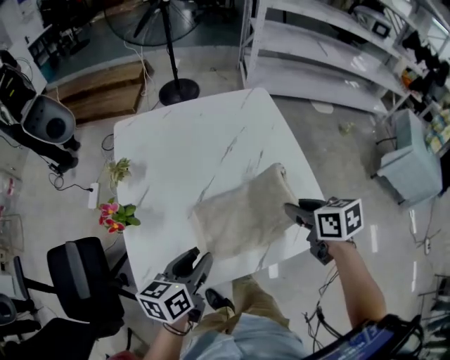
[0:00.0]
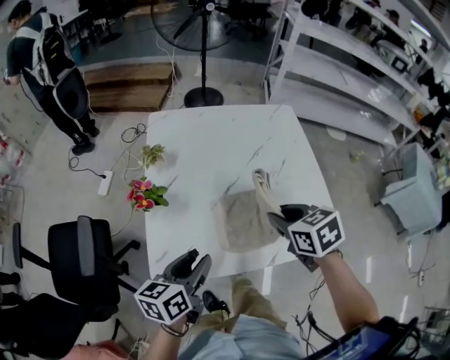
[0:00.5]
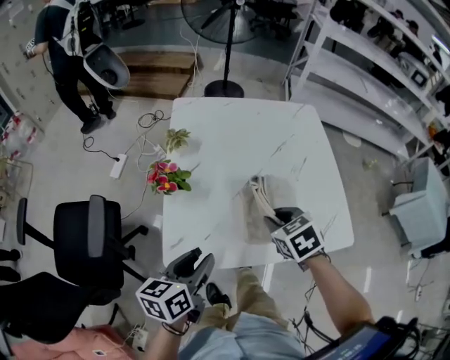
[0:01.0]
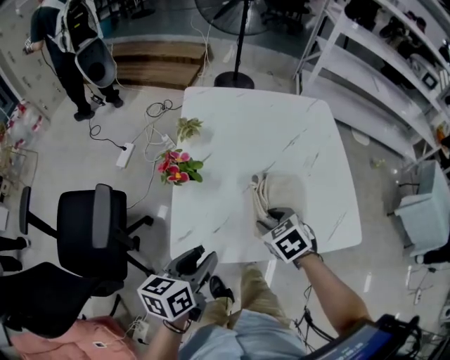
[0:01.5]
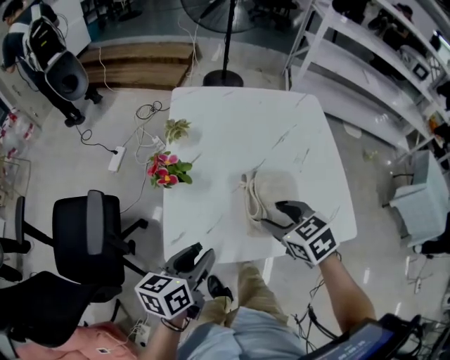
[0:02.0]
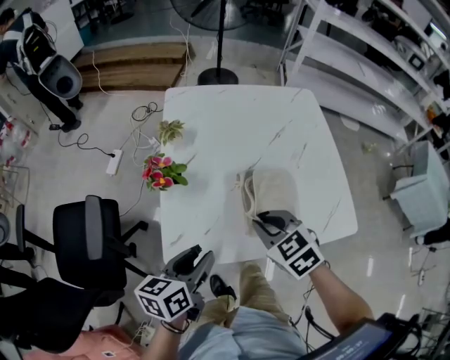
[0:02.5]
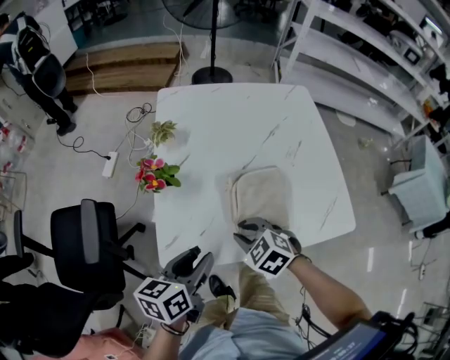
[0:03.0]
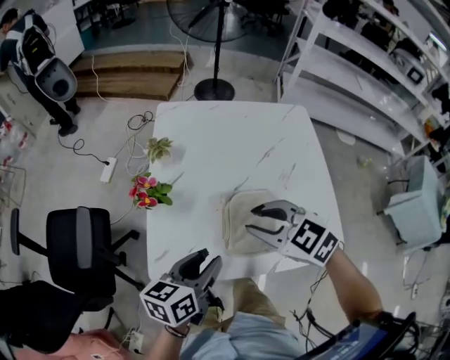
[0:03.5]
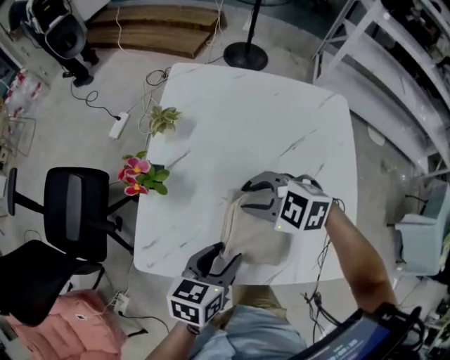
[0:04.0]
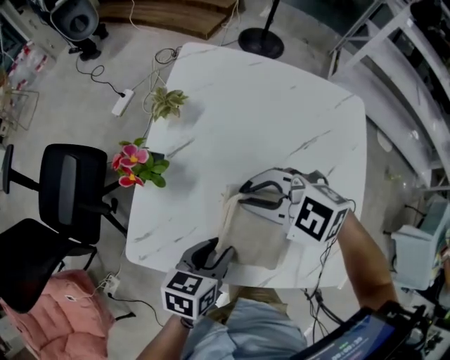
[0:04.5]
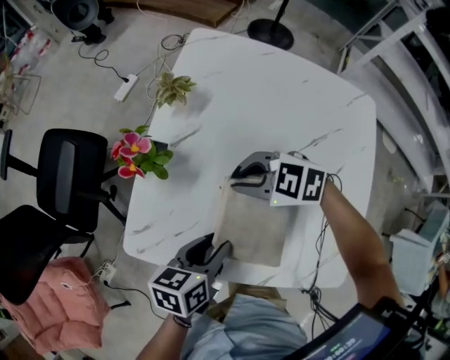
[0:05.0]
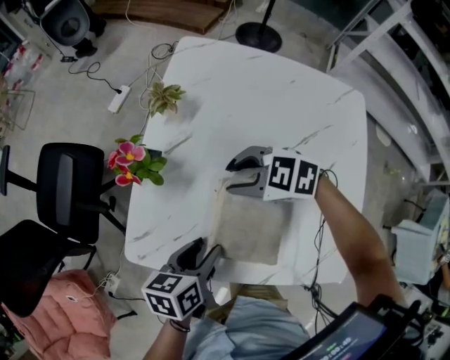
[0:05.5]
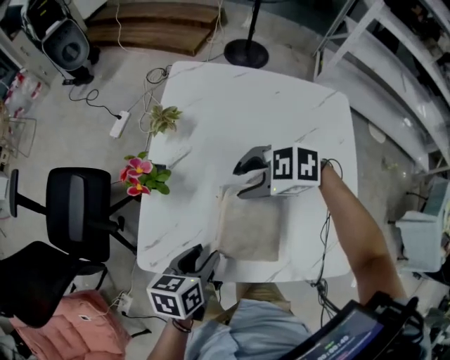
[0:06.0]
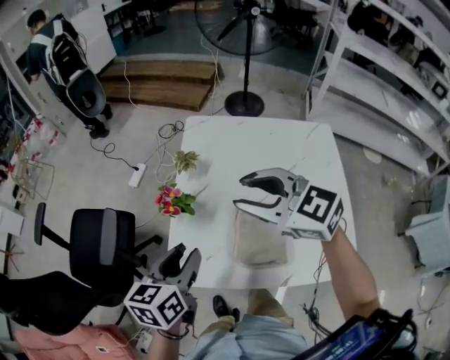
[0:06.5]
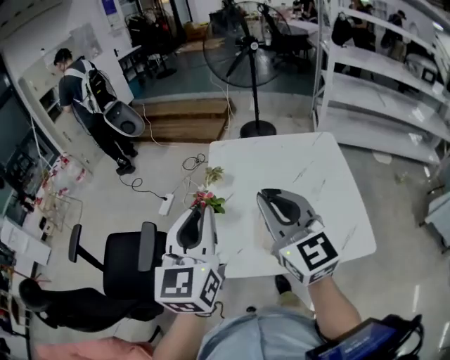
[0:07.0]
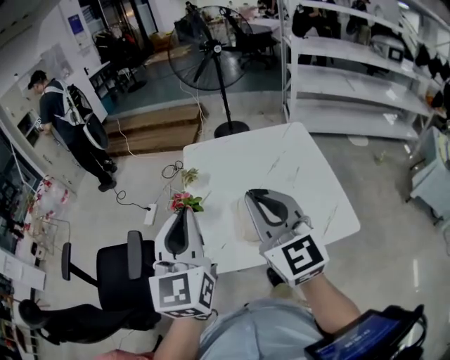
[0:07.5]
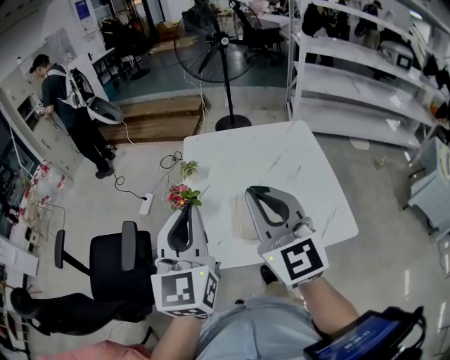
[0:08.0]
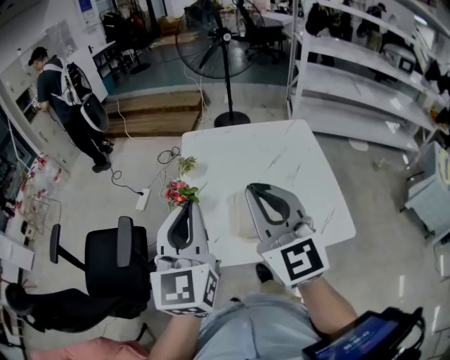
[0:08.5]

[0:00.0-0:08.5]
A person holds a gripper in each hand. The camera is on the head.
0:00.0 to 0:02.0: The left gripper travels to the left and backward by some 15 cm. Meanwhile the right gripper goes about 20 cm to the left, rotates about 40 degrees, and opens.
0:02.0 to 0:04.0: The right gripper swings up and down, roughly 15 cm each way, with 2 reversals, changes its angle by roughly 50 degrees, and closes and opens again. The left gripper changes place by roughly 15 cm.
0:04.0 to 0:06.5: The right gripper heads upward, covering some 20 cm, and changes its angle by some 30 degrees. The left gripper ends up about 20 cm from where it was.
0:06.5 to 0:08.5: The left gripper moves upward, approximately 20 cm, swivels roughly 40 degrees, and closes its fingers; the right gripper shifts roughly 20 cm backward and upward, swivels about 50 degrees, and closes up.

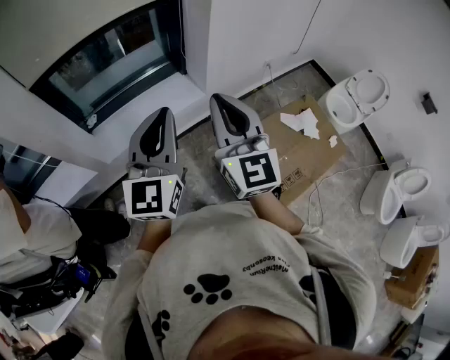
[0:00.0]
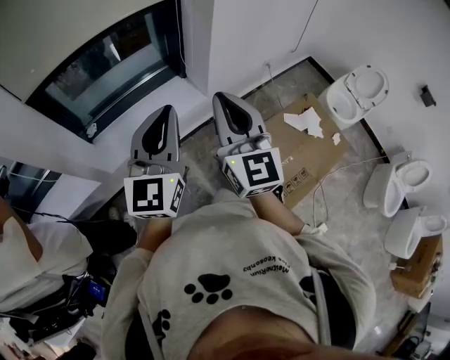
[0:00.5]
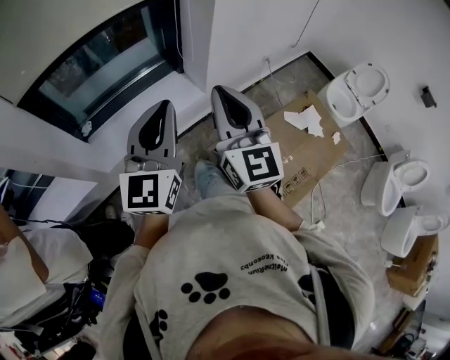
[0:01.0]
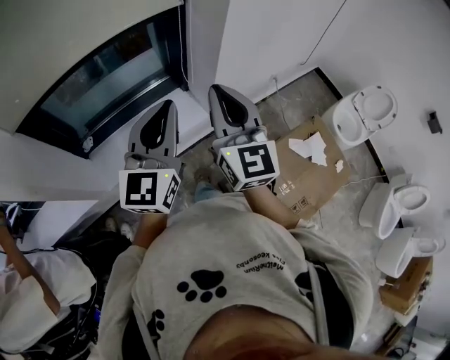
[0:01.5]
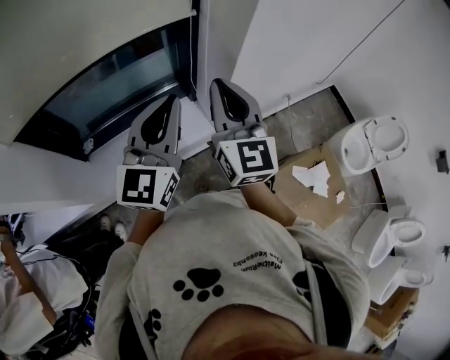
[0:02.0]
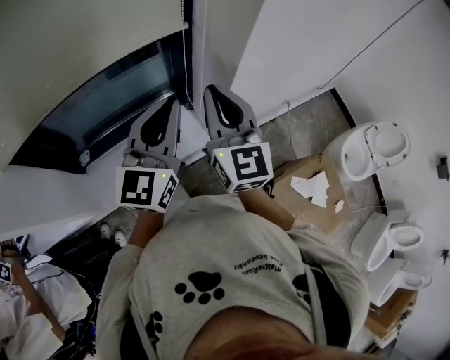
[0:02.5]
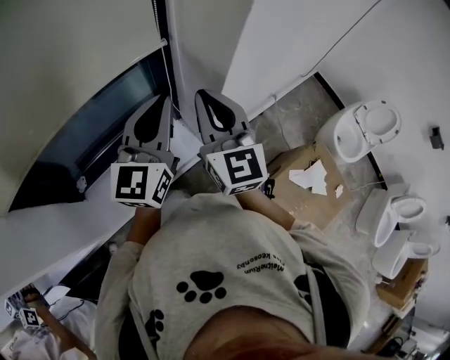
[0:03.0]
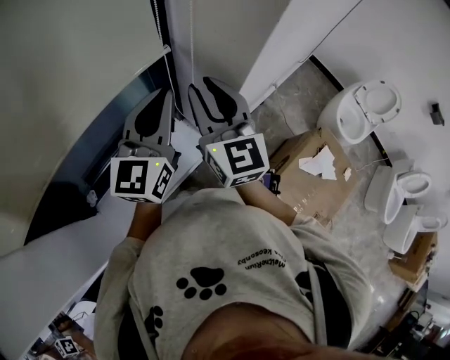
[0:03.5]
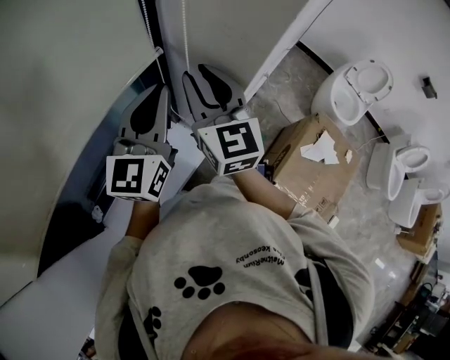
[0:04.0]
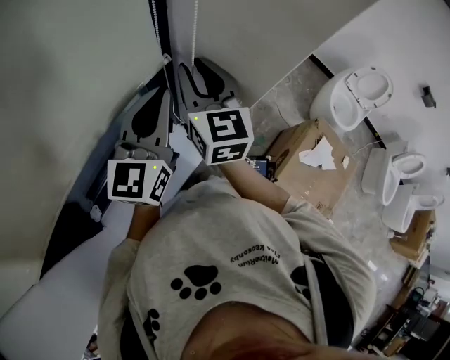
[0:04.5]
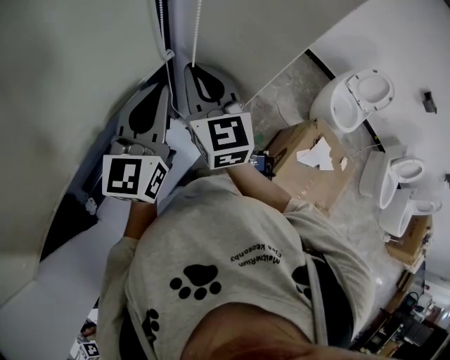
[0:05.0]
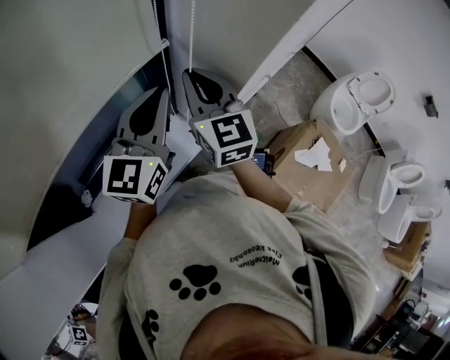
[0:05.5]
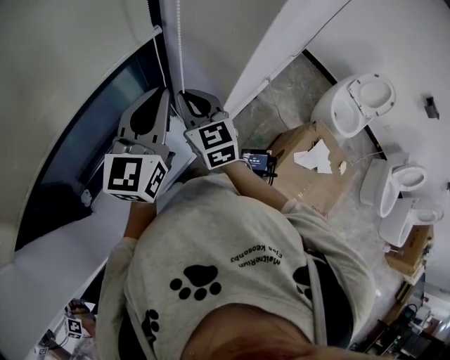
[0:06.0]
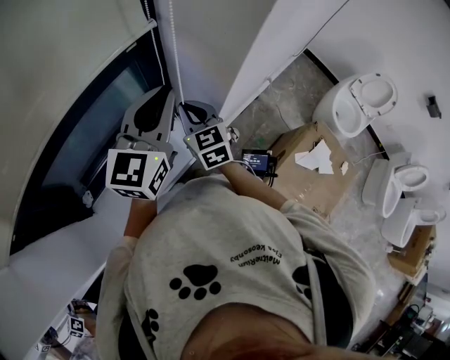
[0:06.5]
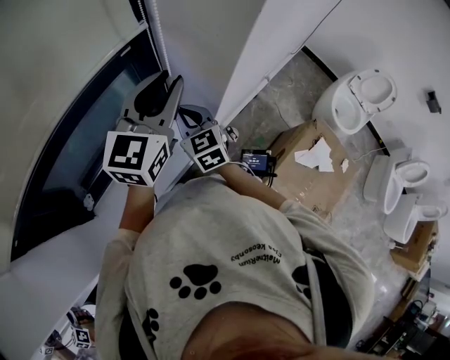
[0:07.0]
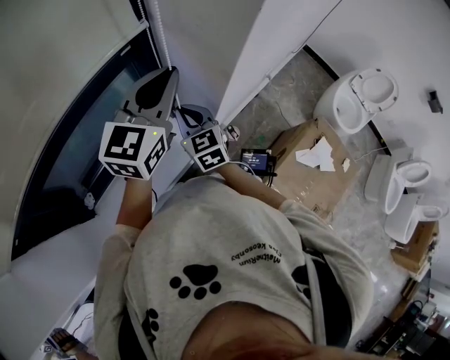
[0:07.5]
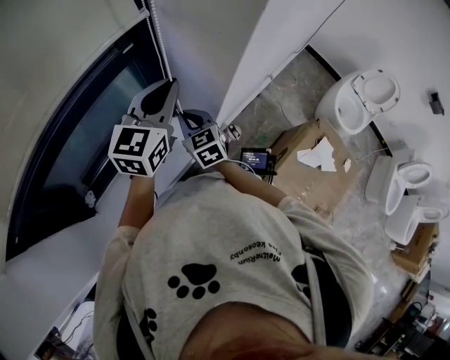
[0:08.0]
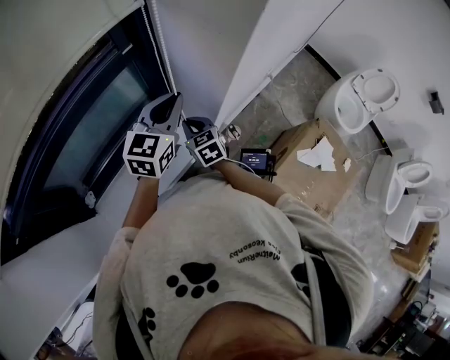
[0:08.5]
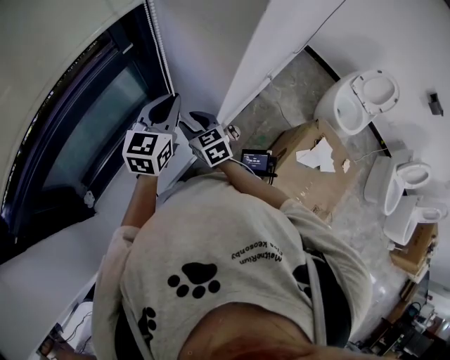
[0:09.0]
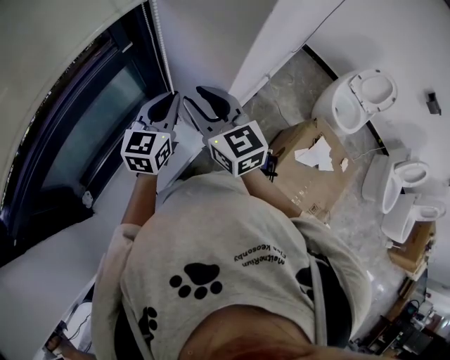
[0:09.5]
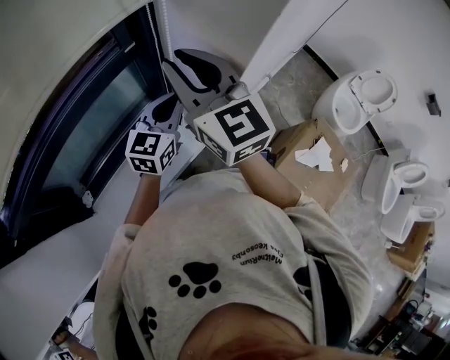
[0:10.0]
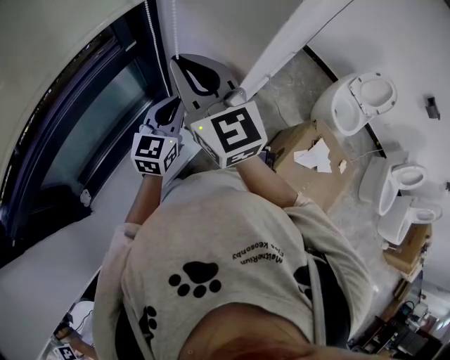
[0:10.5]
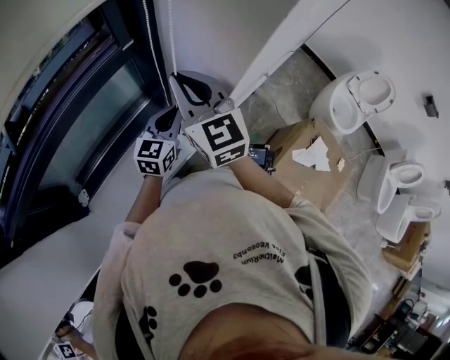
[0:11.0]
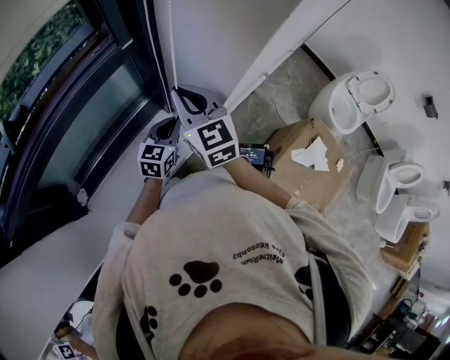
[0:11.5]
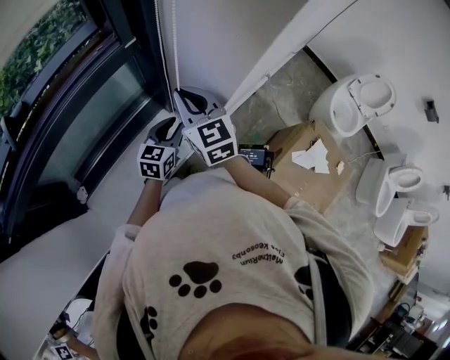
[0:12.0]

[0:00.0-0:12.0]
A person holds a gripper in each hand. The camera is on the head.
0:00.0 to 0:02.0: Both grippers move forward, approximately 30 cm.
0:02.0 to 0:04.0: Both grippers travel together forward, some 20 cm. The right gripper opens its fingers. The left gripper swivels some 20 degrees.
0:04.0 to 0:06.0: The right gripper travels downward by some 10 cm, and closes.
0:06.0 to 0:08.0: The right gripper travels downward by some 15 cm; the left gripper ends up approximately 5 cm from where it was, and opens and closes again.
0:08.0 to 0:10.0: The left gripper heads downward, covering approximately 10 cm. Meanwhile the right gripper travels upward by roughly 30 cm, and rotates about 30 degrees.
0:10.0 to 0:12.0: The two grippers go approximately 15 cm downward. The left gripper opens.

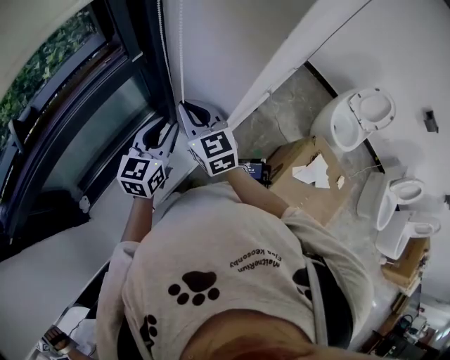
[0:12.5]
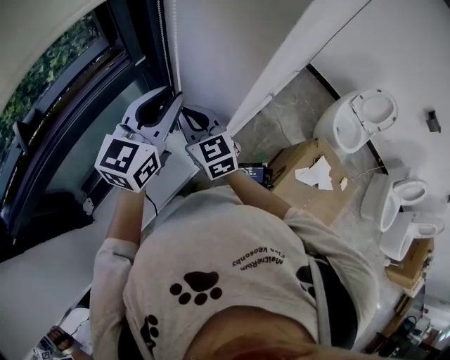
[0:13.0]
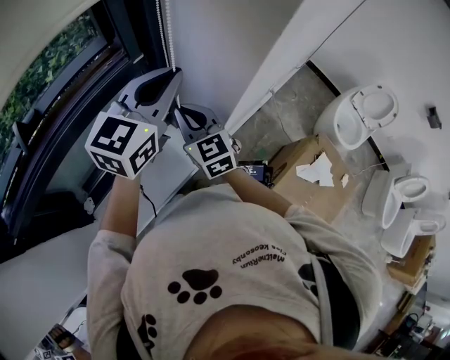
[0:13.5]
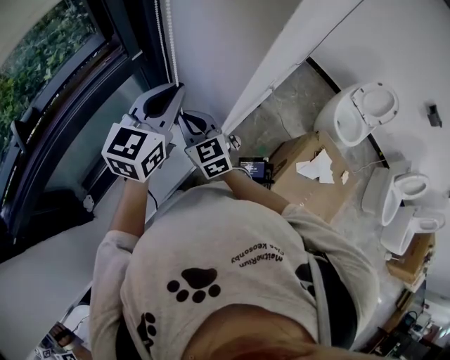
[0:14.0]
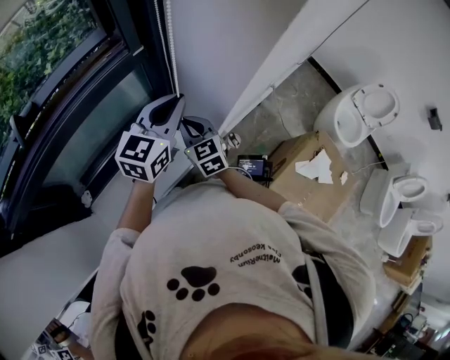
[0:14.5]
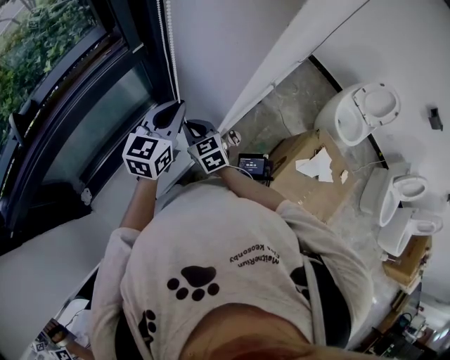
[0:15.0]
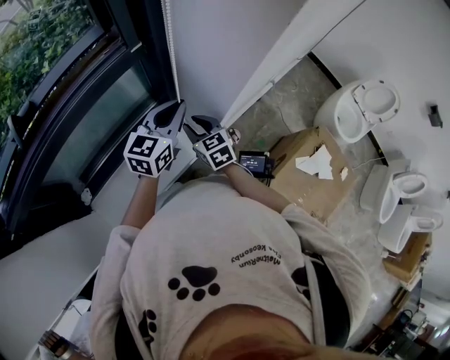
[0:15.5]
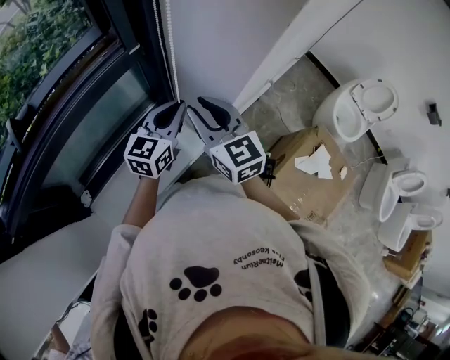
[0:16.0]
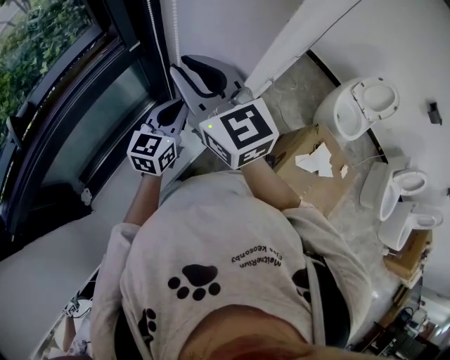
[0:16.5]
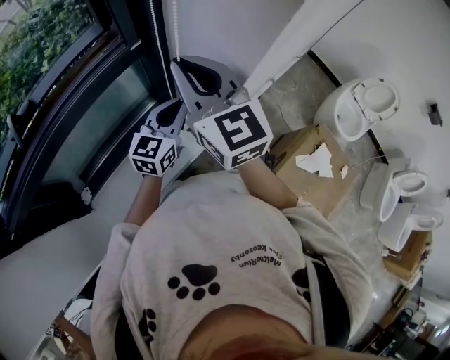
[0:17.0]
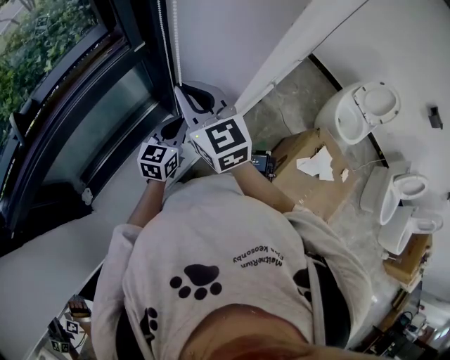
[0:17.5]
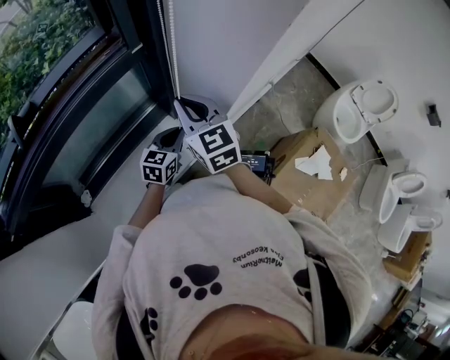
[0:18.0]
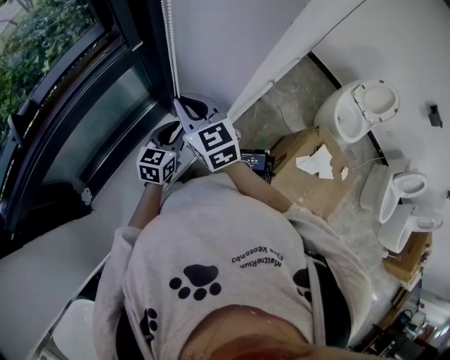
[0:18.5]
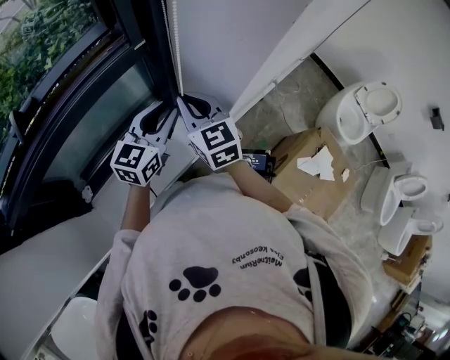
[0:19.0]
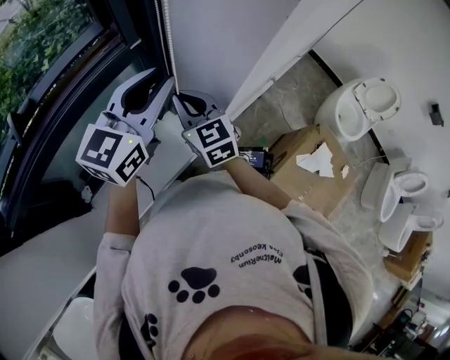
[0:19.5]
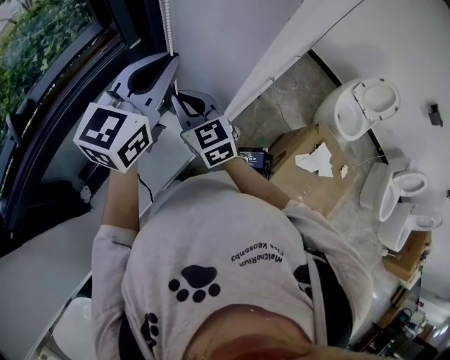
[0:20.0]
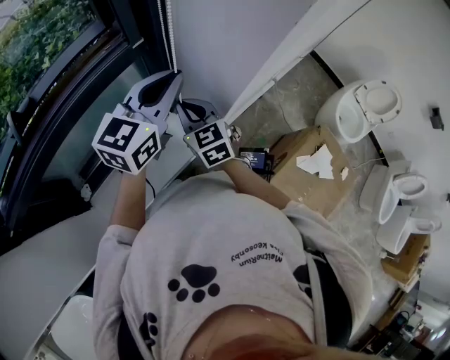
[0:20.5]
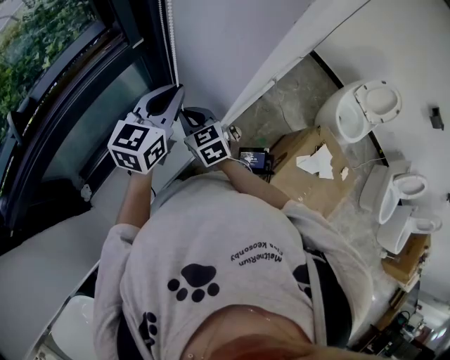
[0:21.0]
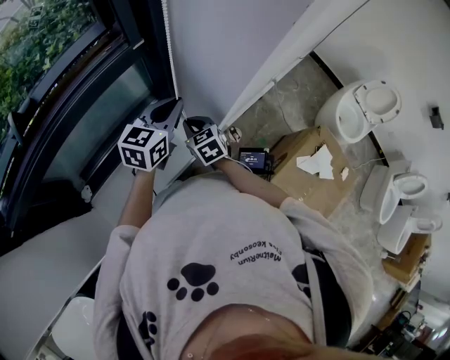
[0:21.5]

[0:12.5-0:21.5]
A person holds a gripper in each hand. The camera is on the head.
0:12.5 to 0:14.5: The left gripper shifts some 5 cm upward, and closes; the right gripper shifts some 10 cm downward.
0:14.5 to 0:17.0: The left gripper moves downward, some 5 cm; the right gripper shifts about 25 cm upward, swivels some 20 degrees, and opens, then closes once more.
0:17.0 to 0:19.5: The right gripper heads downward, covering about 15 cm, while the left gripper travels upward by approximately 15 cm, and opens up.
0:19.5 to 0:21.5: Both grippers move downward, about 15 cm. The right gripper rotates approximately 20 degrees; the left gripper closes up.
